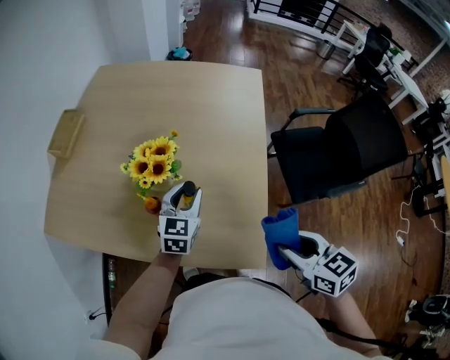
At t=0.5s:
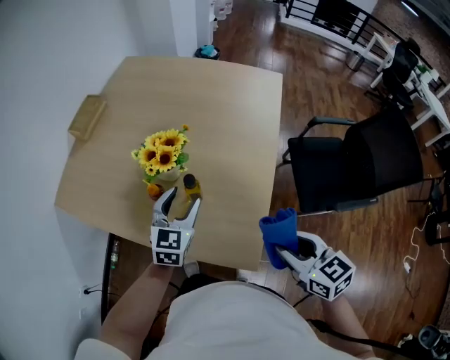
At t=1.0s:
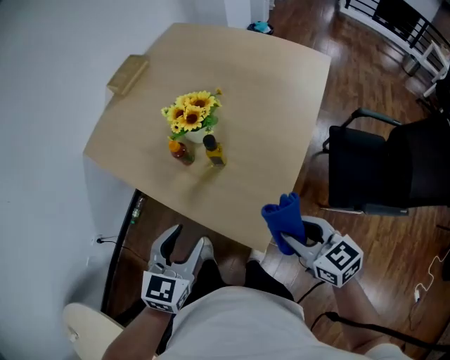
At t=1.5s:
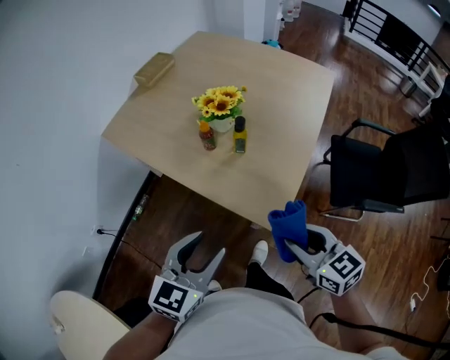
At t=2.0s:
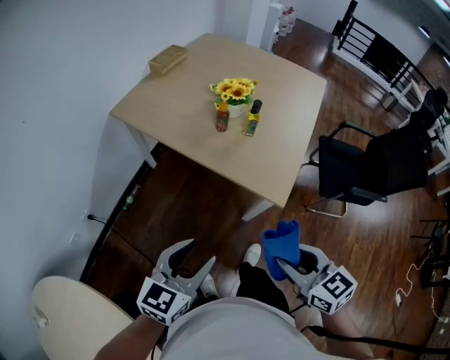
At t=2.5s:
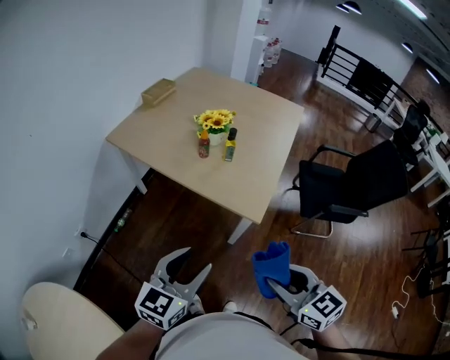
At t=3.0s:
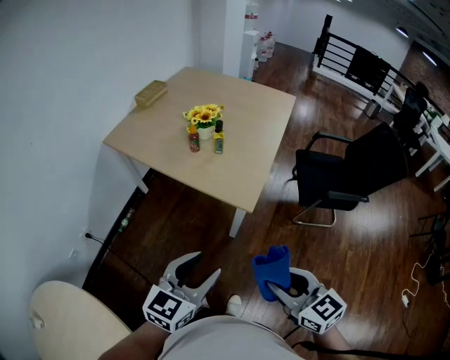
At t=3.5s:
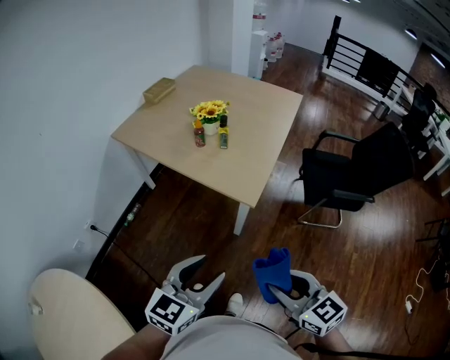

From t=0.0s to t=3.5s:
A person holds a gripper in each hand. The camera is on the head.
From t=0.0s to t=2.0s: The left gripper shifts some 50 cm backward; the right gripper moves backward and to the left, about 30 cm, and swivels roughly 30 degrees.
From t=2.0s to t=3.5s: The left gripper travels to the right and backward by approximately 20 cm, while the right gripper shifts some 20 cm backward and to the right.

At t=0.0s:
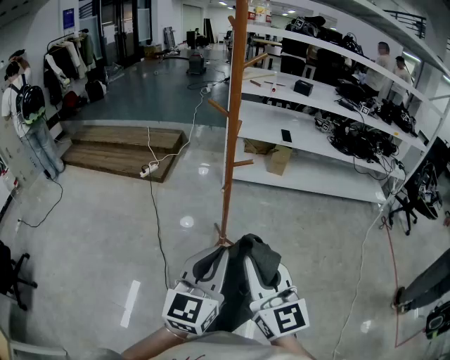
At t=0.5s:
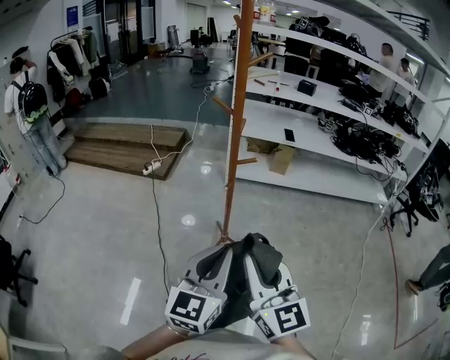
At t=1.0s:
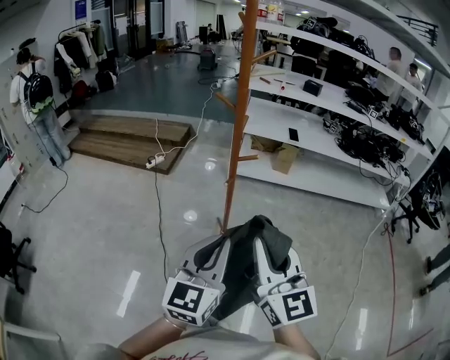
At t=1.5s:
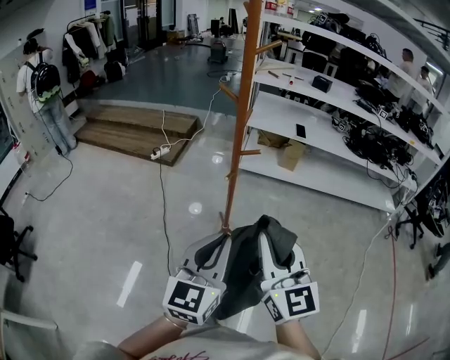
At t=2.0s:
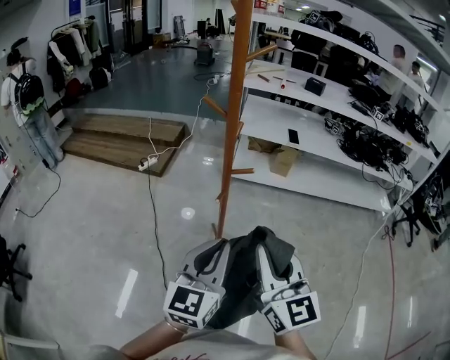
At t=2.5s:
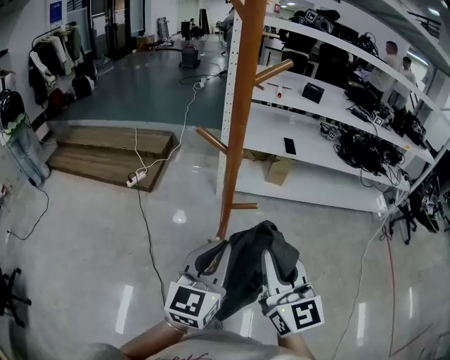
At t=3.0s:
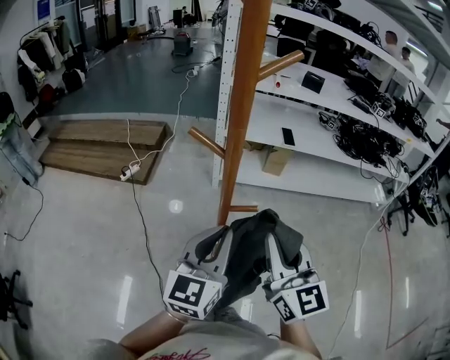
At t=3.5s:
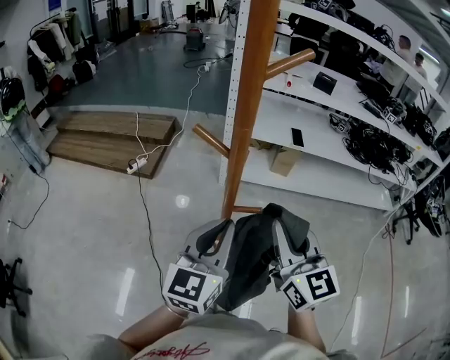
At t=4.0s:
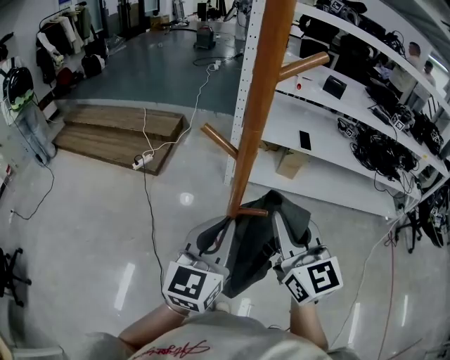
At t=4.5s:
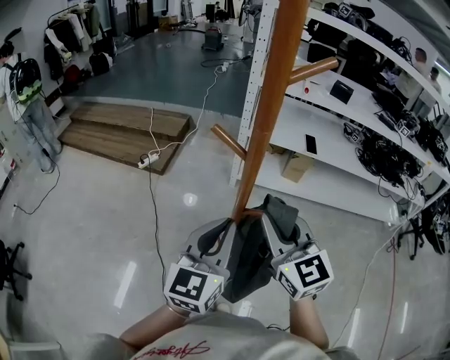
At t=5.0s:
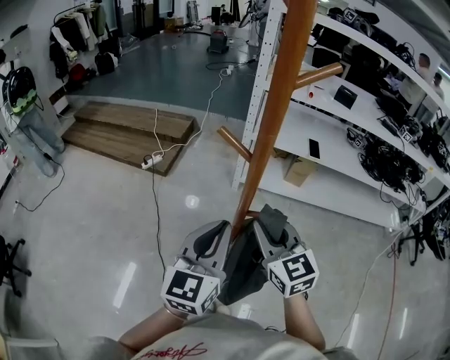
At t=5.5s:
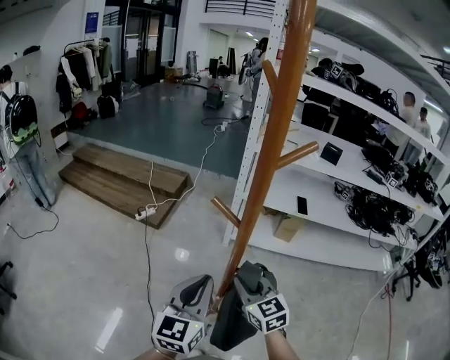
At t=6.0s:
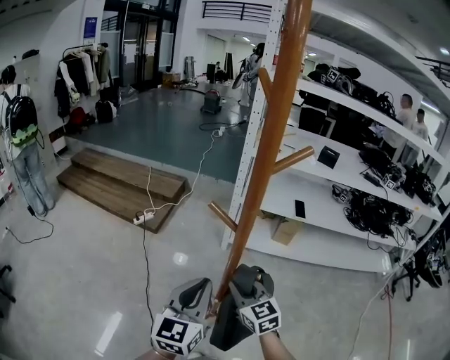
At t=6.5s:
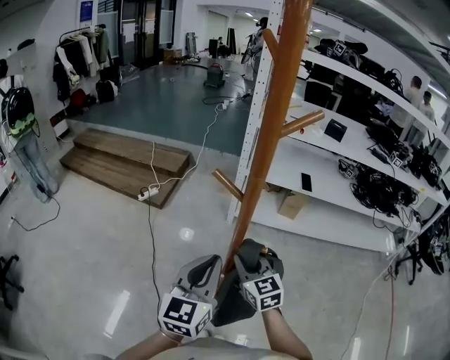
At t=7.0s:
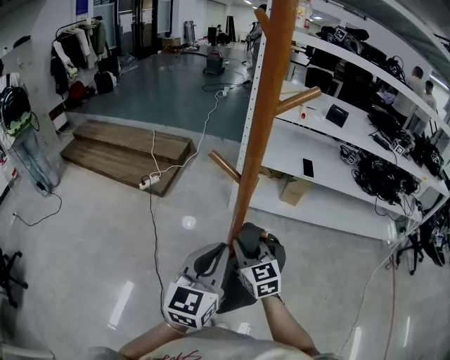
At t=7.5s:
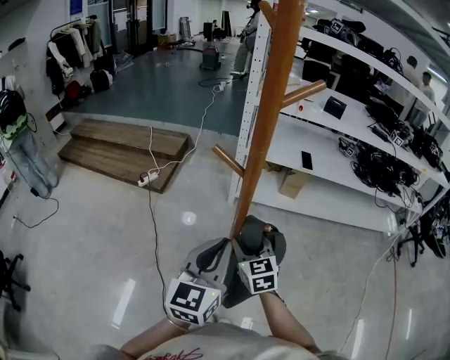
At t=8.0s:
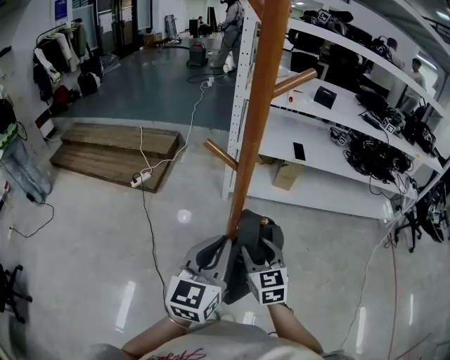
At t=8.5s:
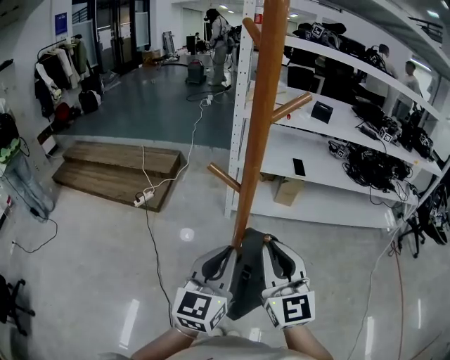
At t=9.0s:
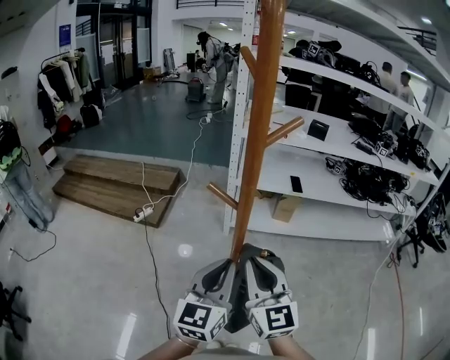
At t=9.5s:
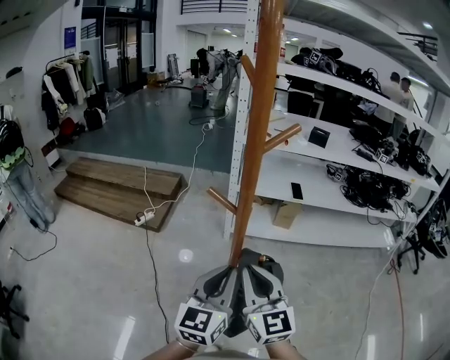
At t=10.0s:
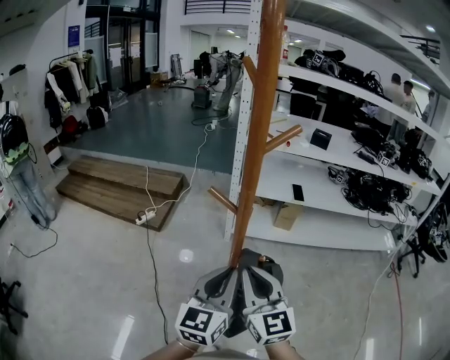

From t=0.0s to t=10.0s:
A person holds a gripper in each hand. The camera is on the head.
From t=0.0s to t=2.0s: The left gripper is displaced forward by some 10 cm. Meanwhile the right gripper moves forward and to the right, about 10 cm.
From t=2.0s to t=4.0s: The grippers both shift forward by about 20 cm.
From t=4.0s to t=6.0s: The right gripper travels downward and to the left by about 15 cm, and swivels some 20 degrees.
From t=6.0s to t=8.0s: The right gripper changes place by some 5 cm, and opens up.
From t=8.0s to t=10.0s: The right gripper moves upward, some 15 cm, rotates approximately 20 degrees, and closes up.

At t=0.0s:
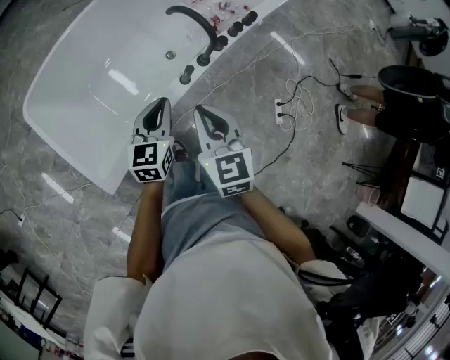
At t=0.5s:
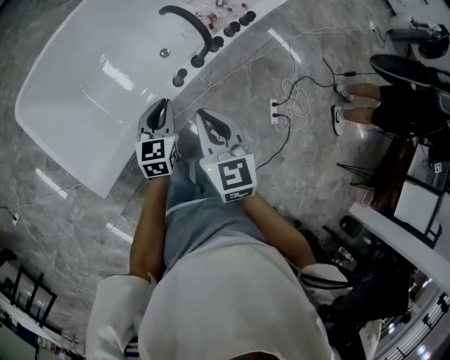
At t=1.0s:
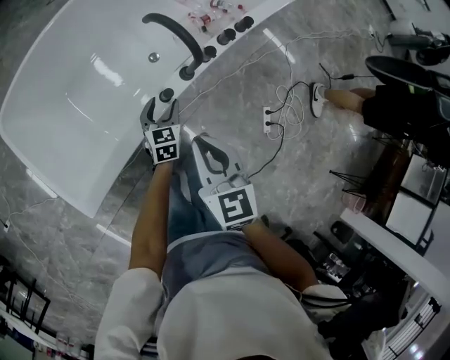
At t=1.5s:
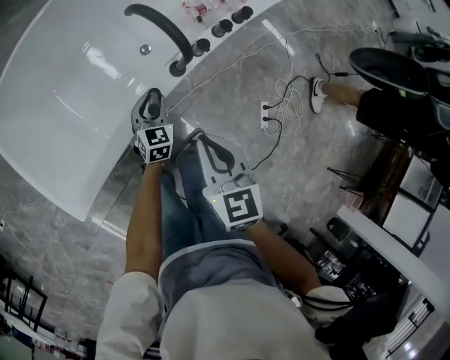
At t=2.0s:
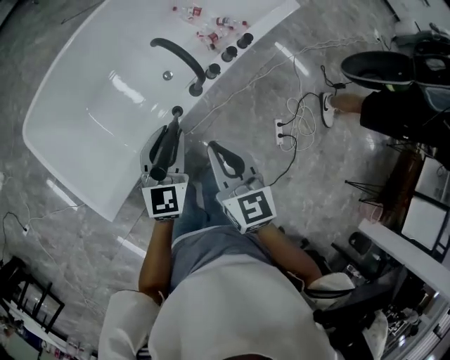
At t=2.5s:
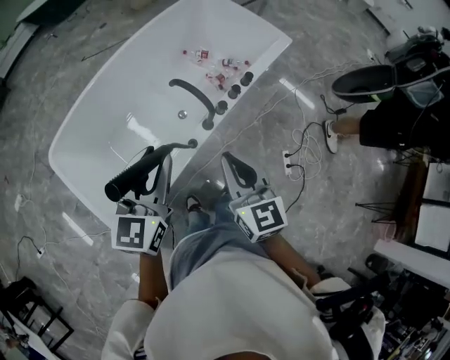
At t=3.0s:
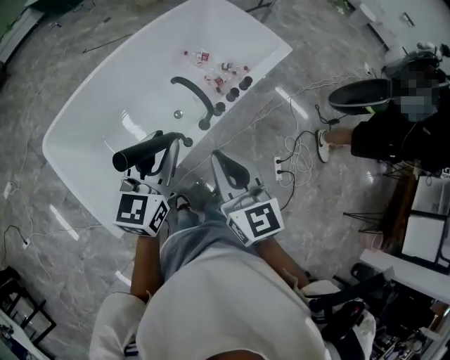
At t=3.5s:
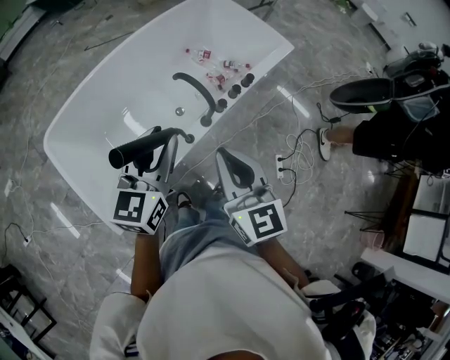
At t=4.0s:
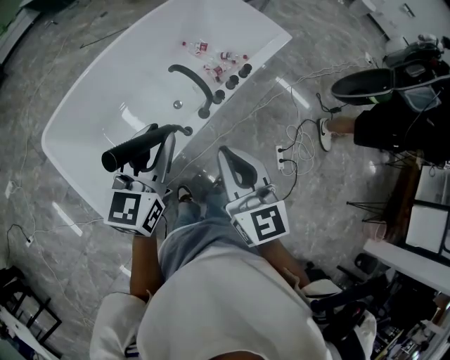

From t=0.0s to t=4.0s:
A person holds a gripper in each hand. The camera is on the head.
From t=0.0s to t=2.0s: The grippers both shift to the right and forward by some 15 cm. The left gripper travels downward and back again, approximately 35 cm each way, and opens up; the right gripper moves approximately 20 cm downward and comes back.
From t=2.0s to t=4.0s: The two grippers go about 20 cm upward.

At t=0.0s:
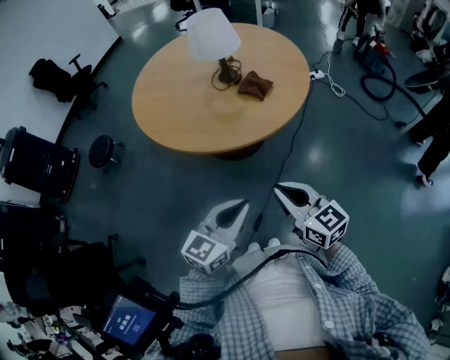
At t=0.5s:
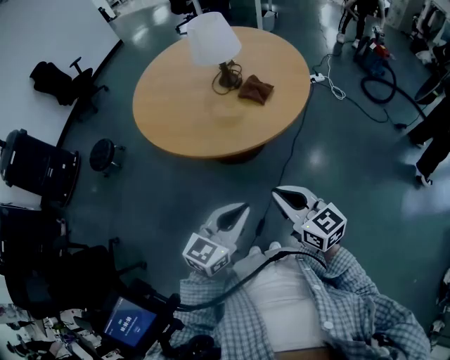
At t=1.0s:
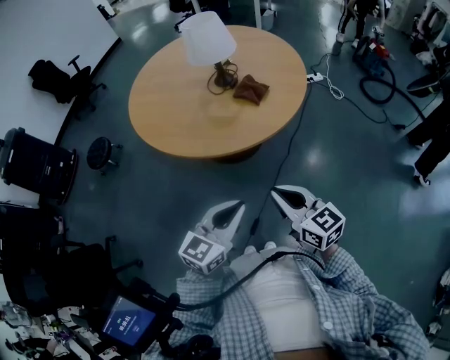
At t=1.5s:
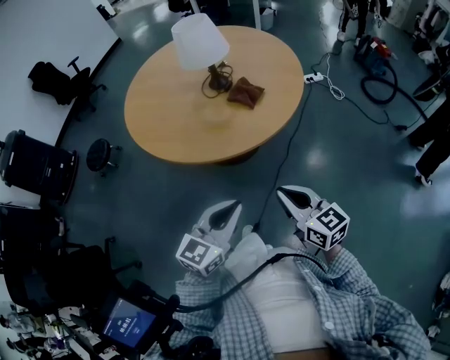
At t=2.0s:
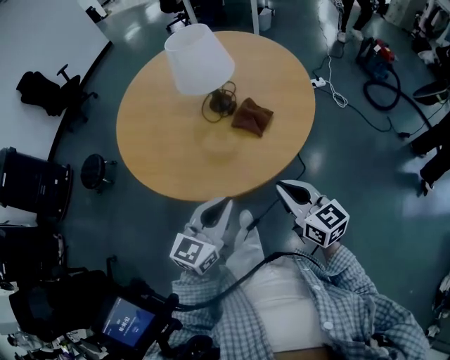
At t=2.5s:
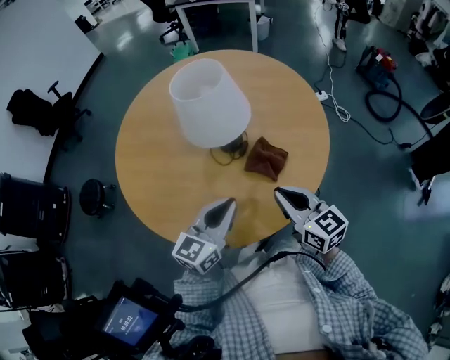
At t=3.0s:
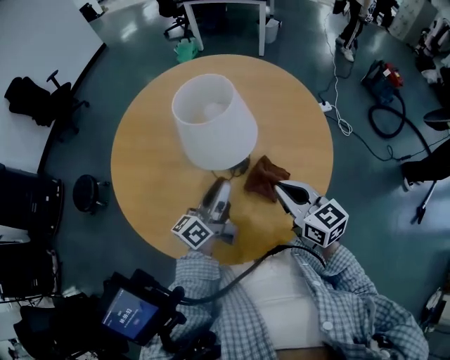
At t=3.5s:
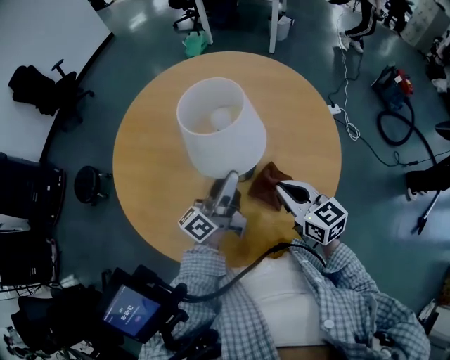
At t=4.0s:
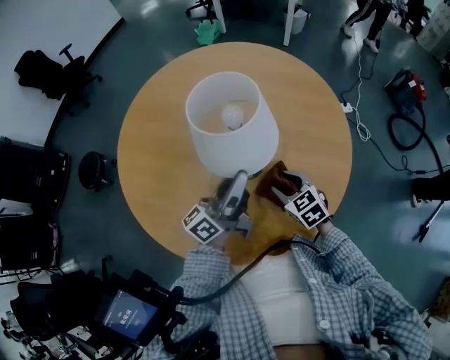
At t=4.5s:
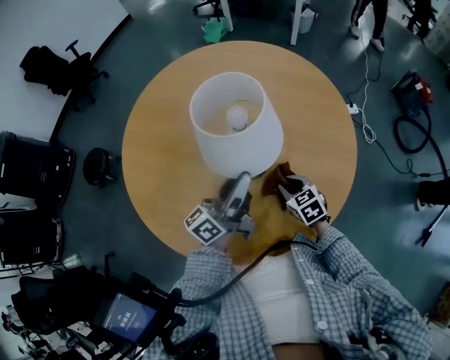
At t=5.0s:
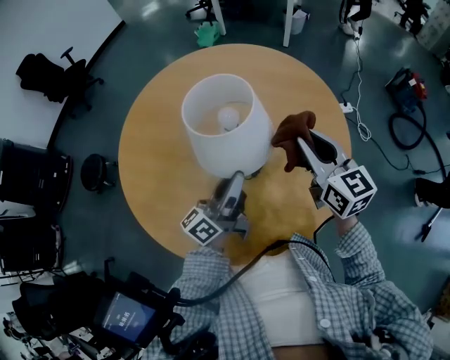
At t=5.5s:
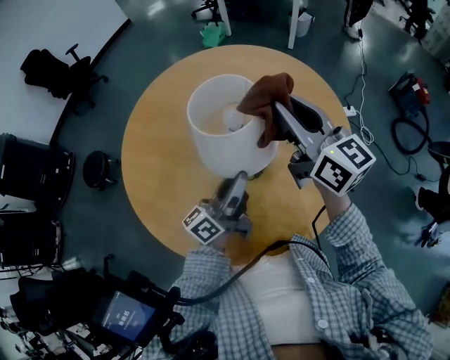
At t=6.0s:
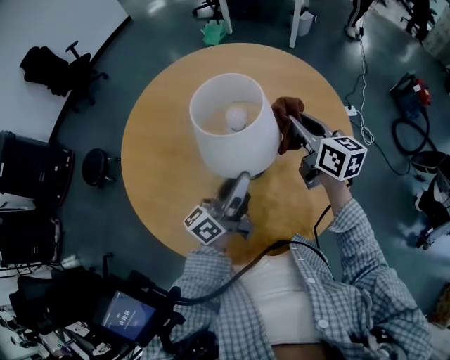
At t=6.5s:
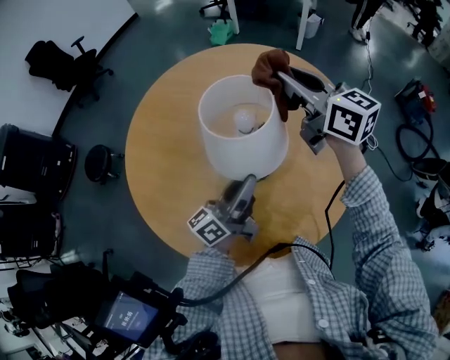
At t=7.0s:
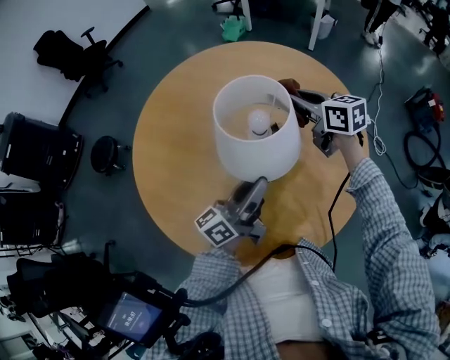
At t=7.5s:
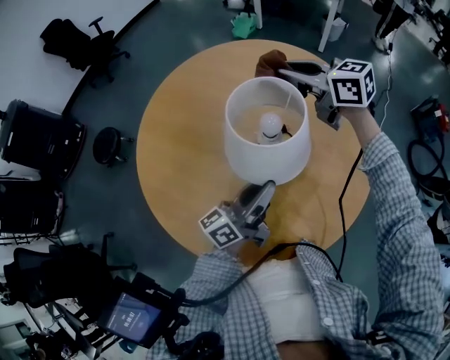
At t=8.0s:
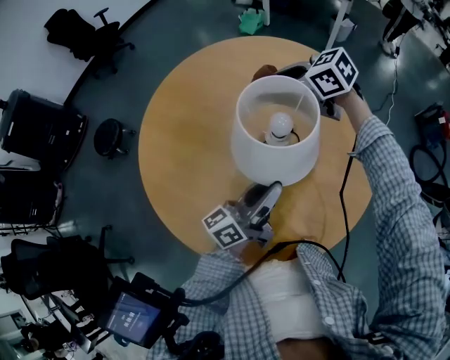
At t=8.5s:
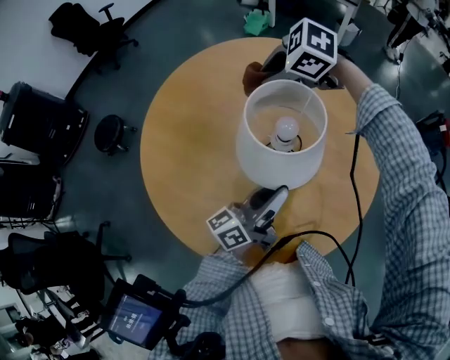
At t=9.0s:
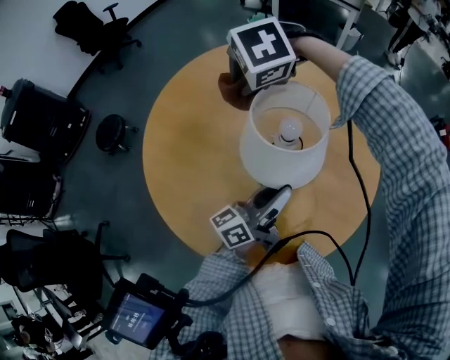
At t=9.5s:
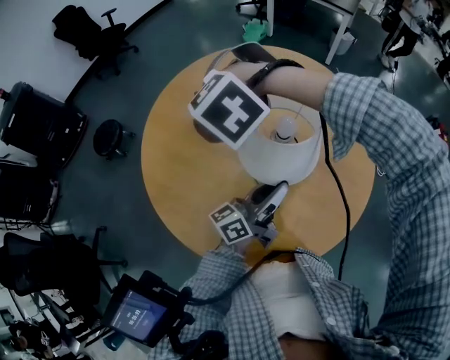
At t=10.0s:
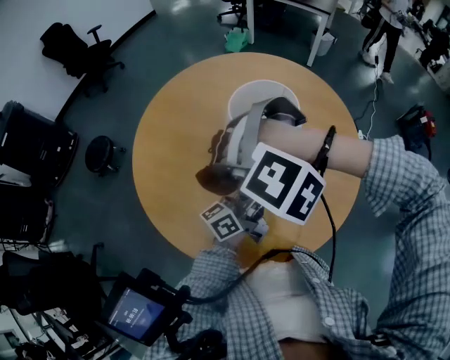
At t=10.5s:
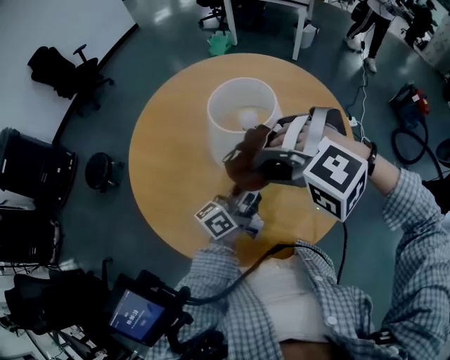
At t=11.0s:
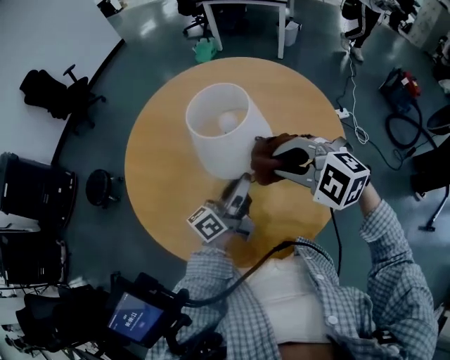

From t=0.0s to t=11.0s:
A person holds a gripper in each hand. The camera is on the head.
From t=0.0s to t=2.0s: The grippers both shift forward by approximately 20 cm.
From t=2.0s to t=3.5s: The two grippers go some 30 cm forward. The left gripper rolls counterclockwise, seen from behind, by roughly 40 degrees, and opens up.
From t=3.5s to t=5.5s: The right gripper heads upward and forward, covering approximately 25 cm, turns by roughly 20 degrees, and opens, then closes once more.
From t=5.5s to t=7.5s: The right gripper goes up and down, roughly 15 cm each way, reversing 3 times, and rotates roughly 40 degrees.
From t=7.5s to t=9.0s: The right gripper ends up approximately 15 cm from where it was, and tips its fingers downward by approximately 60 degrees.
From t=9.0s to t=11.0s: The right gripper shifts by approximately 25 cm, and tips its fingers upward by some 40 degrees.
